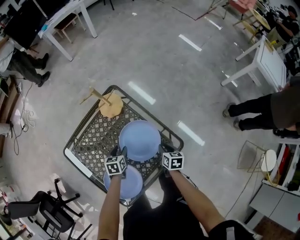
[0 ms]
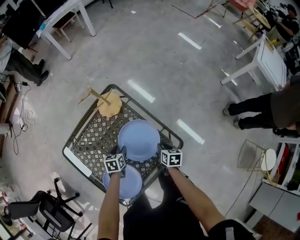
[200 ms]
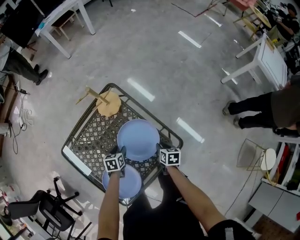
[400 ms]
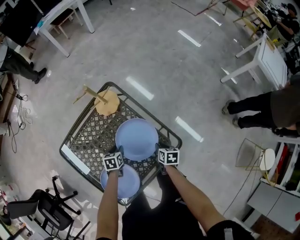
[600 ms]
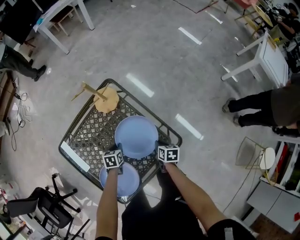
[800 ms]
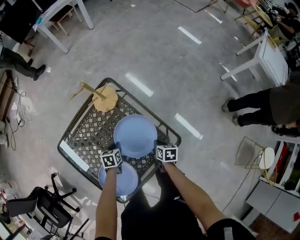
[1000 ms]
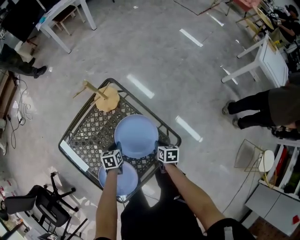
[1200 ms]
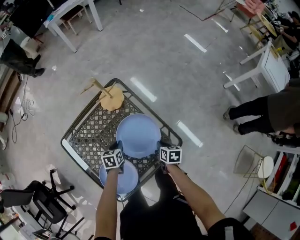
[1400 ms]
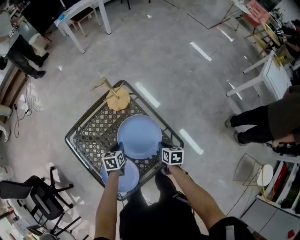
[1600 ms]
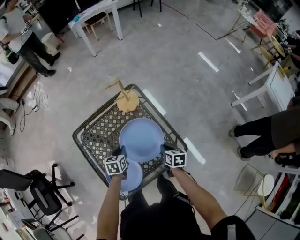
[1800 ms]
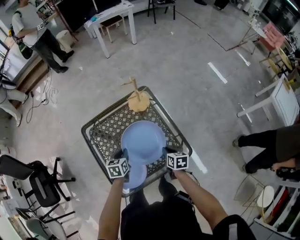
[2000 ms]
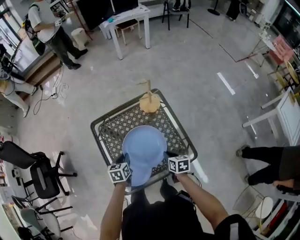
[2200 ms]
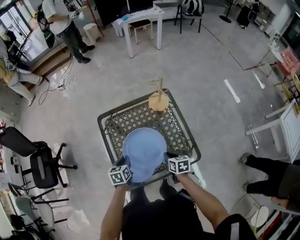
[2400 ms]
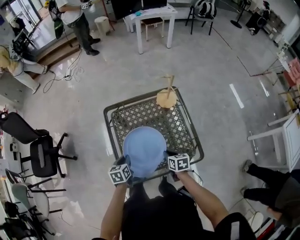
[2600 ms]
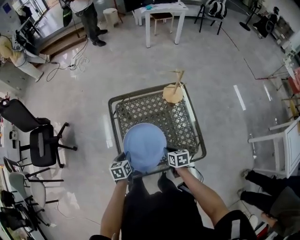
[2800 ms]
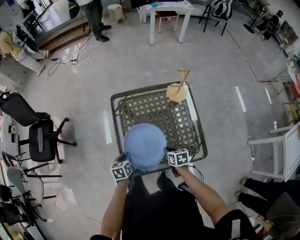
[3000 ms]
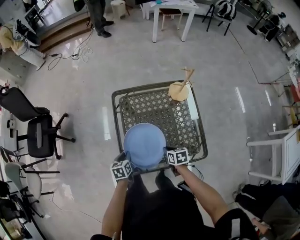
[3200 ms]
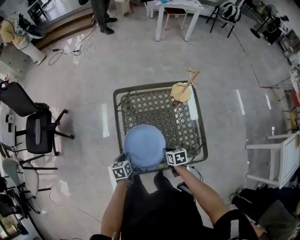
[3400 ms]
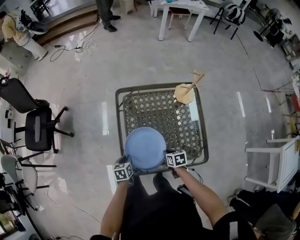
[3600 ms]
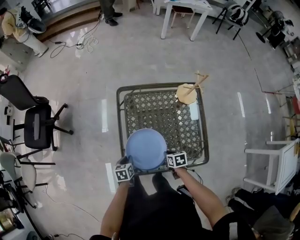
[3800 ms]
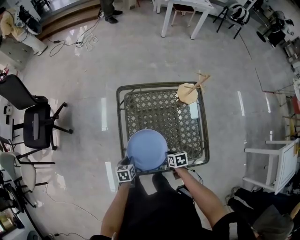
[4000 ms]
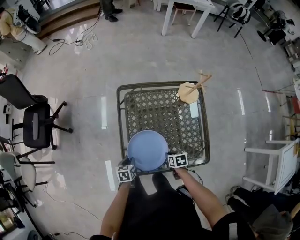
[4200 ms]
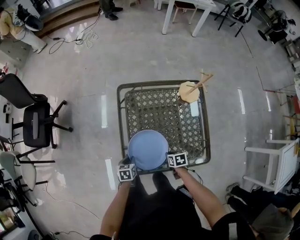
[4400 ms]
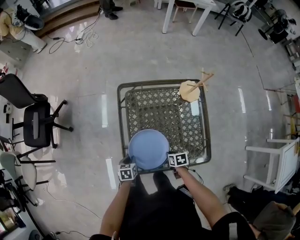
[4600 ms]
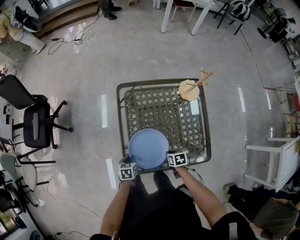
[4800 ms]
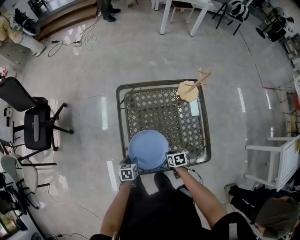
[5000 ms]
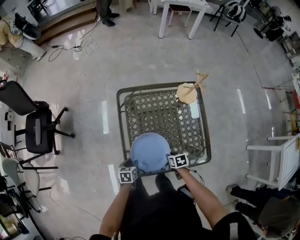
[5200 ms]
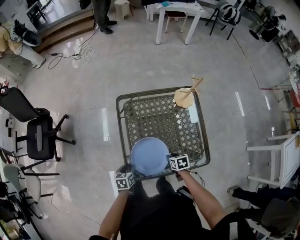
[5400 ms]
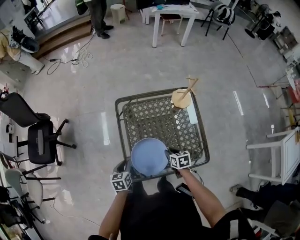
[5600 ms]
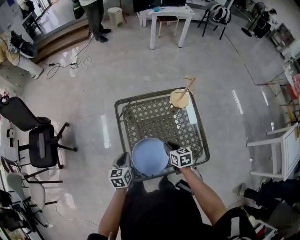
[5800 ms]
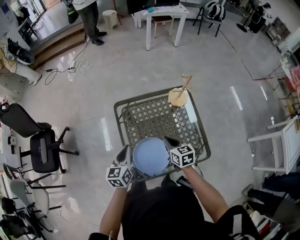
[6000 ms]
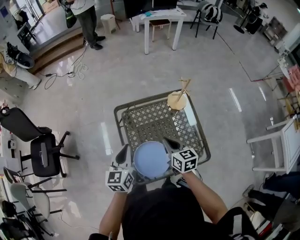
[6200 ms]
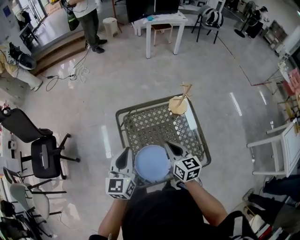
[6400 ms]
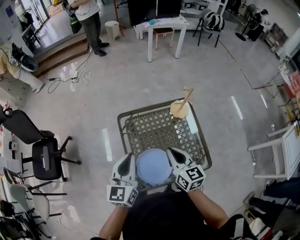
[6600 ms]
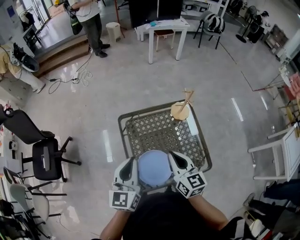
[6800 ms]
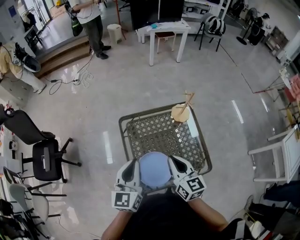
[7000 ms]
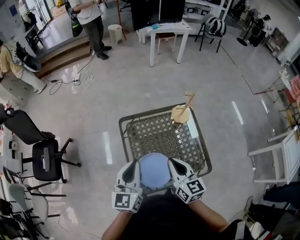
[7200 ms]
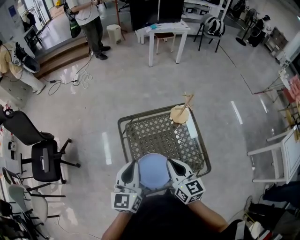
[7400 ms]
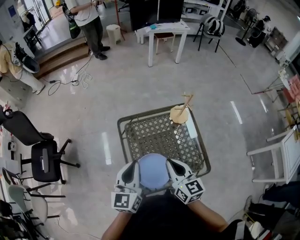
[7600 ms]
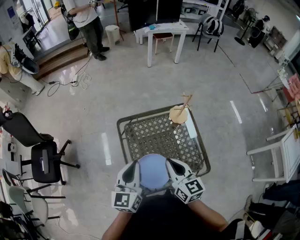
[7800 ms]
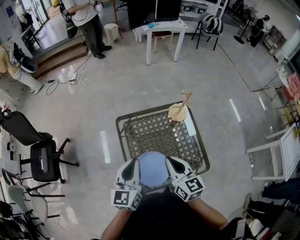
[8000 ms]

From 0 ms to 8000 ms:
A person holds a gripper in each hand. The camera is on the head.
From 0 ms to 1600 ms: The left gripper goes downward and returns, about 5 cm each way, and closes.
From 1600 ms to 3200 ms: The left gripper shifts by some 30 cm, and swivels roughly 40 degrees, while the right gripper ends up approximately 25 cm from where it was, and rotates about 40 degrees.
From 3200 ms to 4800 ms: The grippers both shift downward by approximately 10 cm.
From 4800 ms to 6400 ms: The two grippers go roughly 35 cm upward. The left gripper angles its fingers upward, by roughly 50 degrees, and opens, then closes once more; the right gripper angles its fingers upward, by roughly 50 degrees.
From 6400 ms to 8000 ms: The right gripper moves upward, approximately 5 cm.

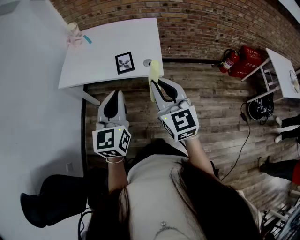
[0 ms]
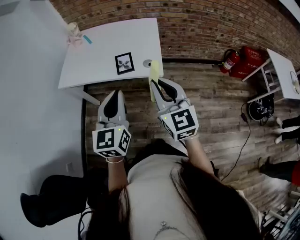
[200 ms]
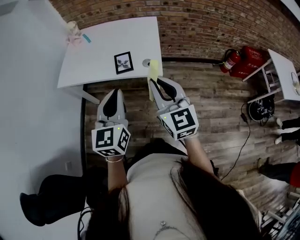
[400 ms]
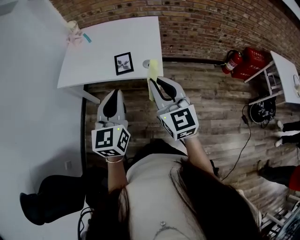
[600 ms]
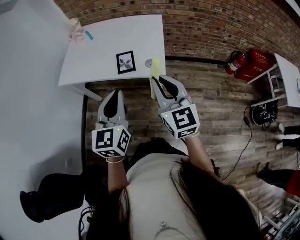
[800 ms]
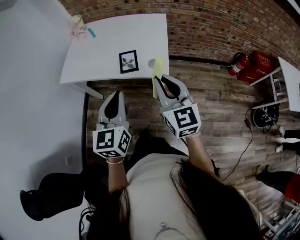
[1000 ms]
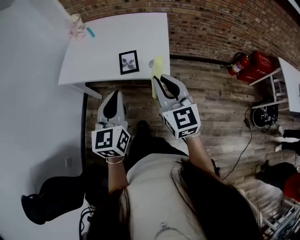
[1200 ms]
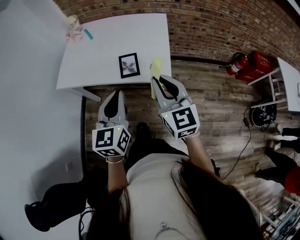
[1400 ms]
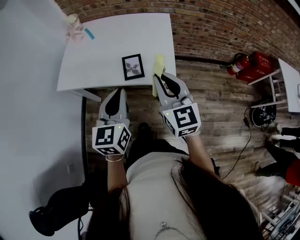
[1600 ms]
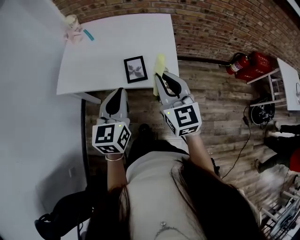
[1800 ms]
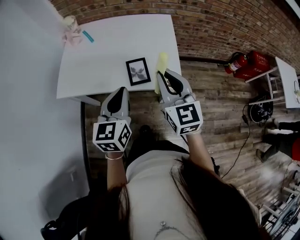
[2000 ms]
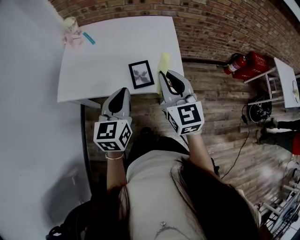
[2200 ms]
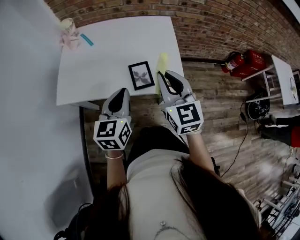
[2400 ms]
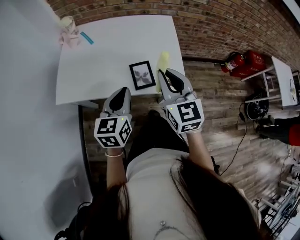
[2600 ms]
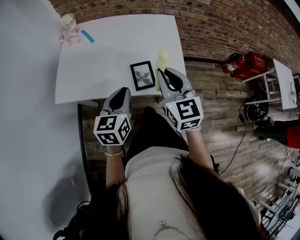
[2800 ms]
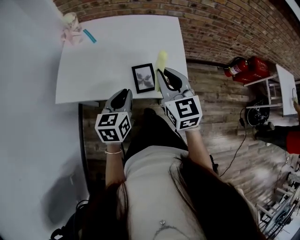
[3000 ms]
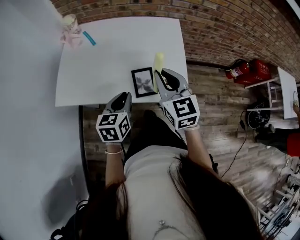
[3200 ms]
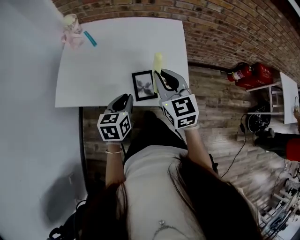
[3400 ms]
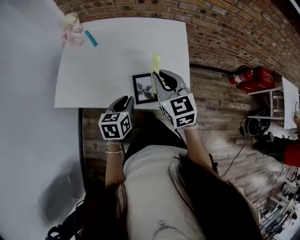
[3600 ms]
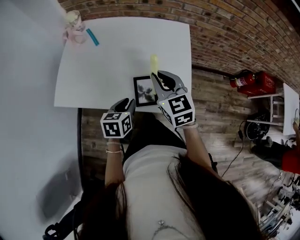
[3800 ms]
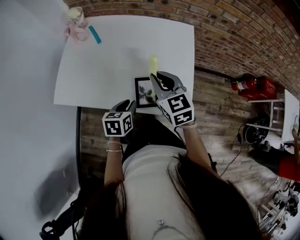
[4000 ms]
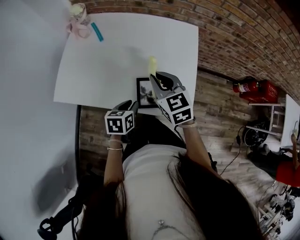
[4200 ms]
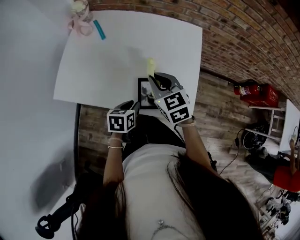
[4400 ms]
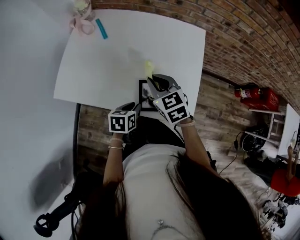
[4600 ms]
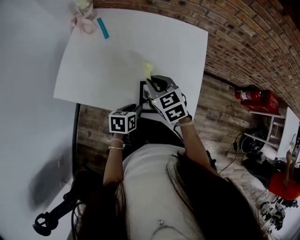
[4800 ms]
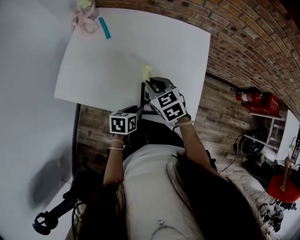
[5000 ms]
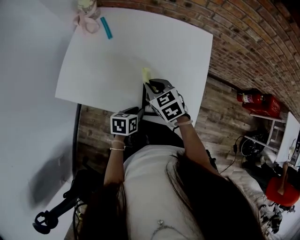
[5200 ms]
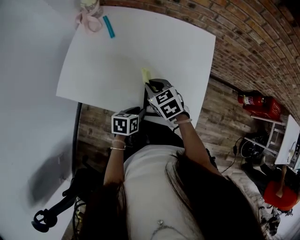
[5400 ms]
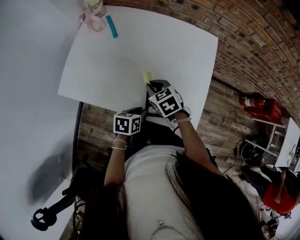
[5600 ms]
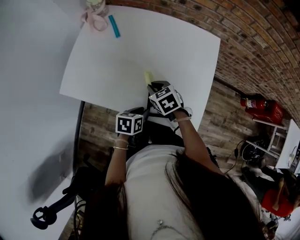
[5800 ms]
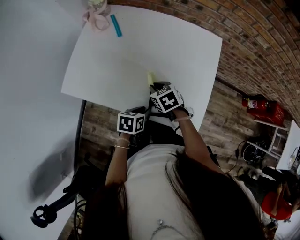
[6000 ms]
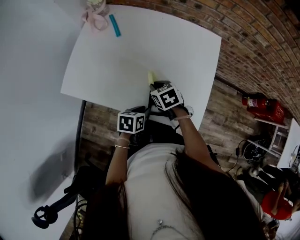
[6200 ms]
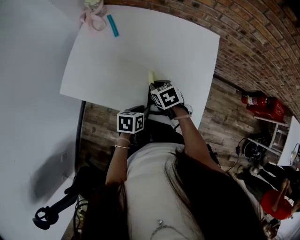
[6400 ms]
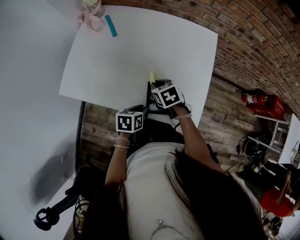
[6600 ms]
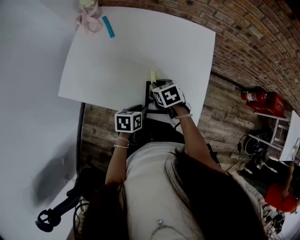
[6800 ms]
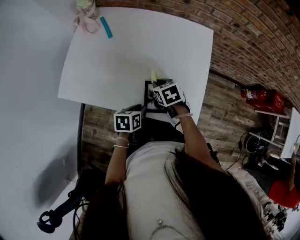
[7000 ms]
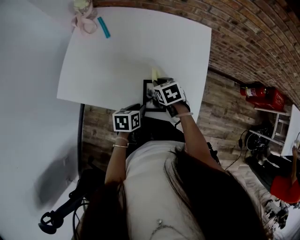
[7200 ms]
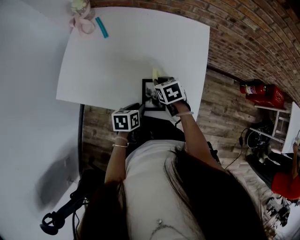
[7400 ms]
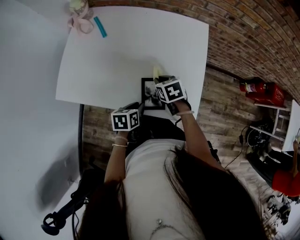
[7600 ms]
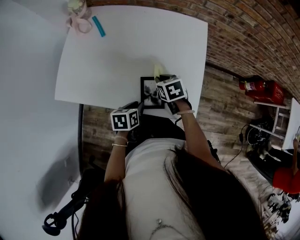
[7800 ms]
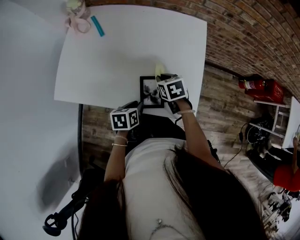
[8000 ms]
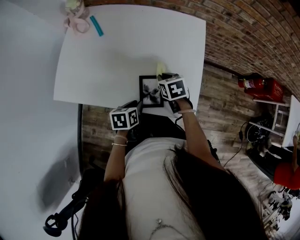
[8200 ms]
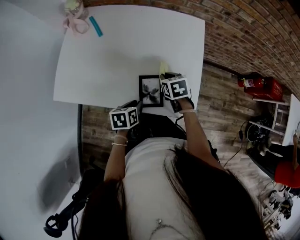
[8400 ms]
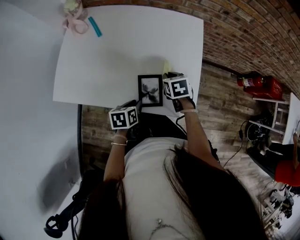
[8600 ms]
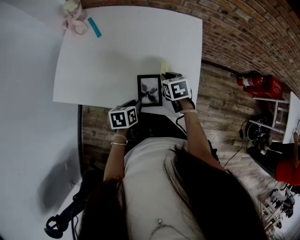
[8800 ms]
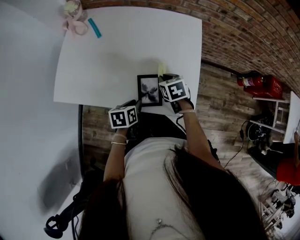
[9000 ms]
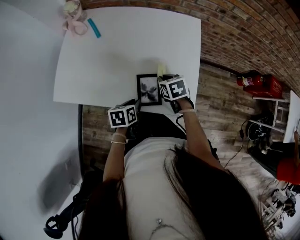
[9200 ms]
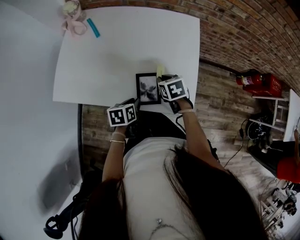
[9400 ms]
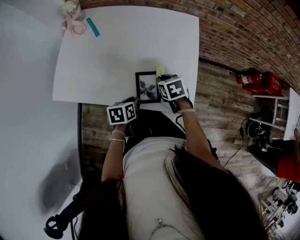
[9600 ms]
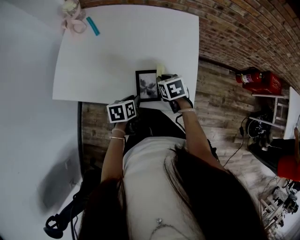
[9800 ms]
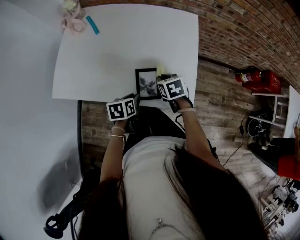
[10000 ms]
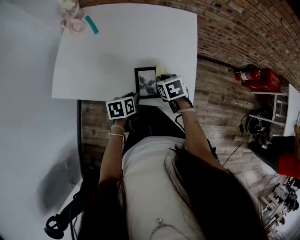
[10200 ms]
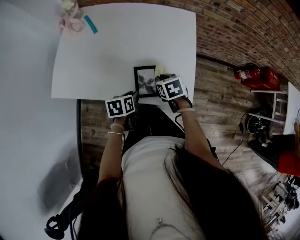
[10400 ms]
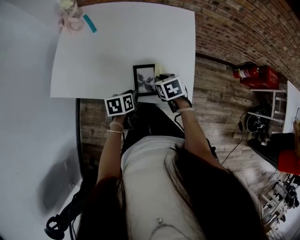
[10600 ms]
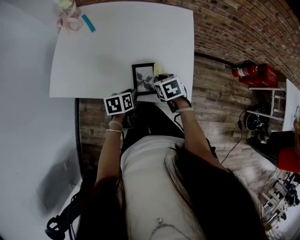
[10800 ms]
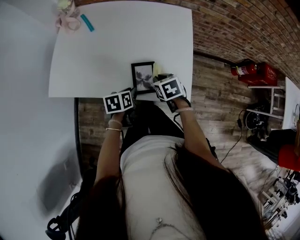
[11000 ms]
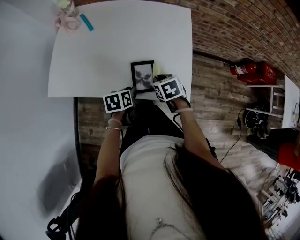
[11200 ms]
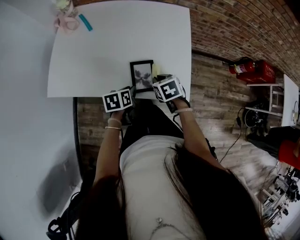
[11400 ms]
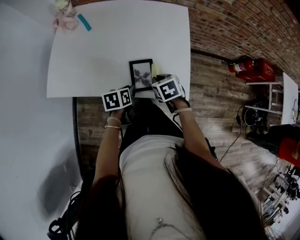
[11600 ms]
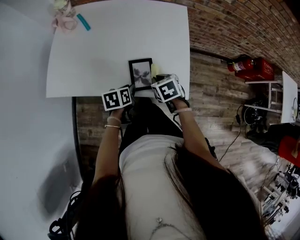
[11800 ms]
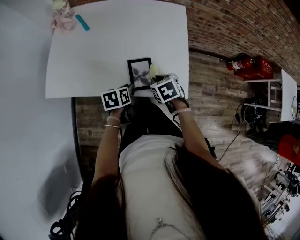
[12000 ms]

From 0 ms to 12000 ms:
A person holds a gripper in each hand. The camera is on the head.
From 0 ms to 1600 ms: The grippers both shift forward by roughly 15 cm.
From 1600 ms to 3000 ms: The left gripper goes some 15 cm forward, downward and to the left, while the right gripper is displaced forward and to the left by approximately 15 cm.
From 3000 ms to 4400 ms: The right gripper shifts some 15 cm forward and downward, and changes its angle by roughly 30 degrees. The left gripper is displaced downward by about 15 cm, and rotates approximately 30 degrees.
From 4400 ms to 6000 ms: The right gripper shifts approximately 15 cm downward, and swivels about 30 degrees.
From 6000 ms to 7600 ms: The right gripper moves to the right, about 5 cm.
From 7600 ms to 9000 ms: The grippers stay close to where they were, moving slightly.
From 9000 ms to 10400 ms: The grippers make only small movements.
From 10400 ms to 12000 ms: There are only small adjustments of the grippers.

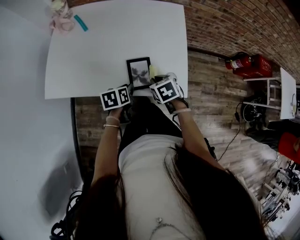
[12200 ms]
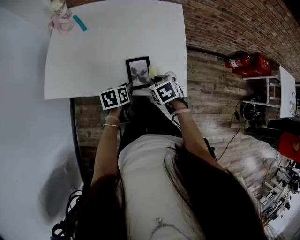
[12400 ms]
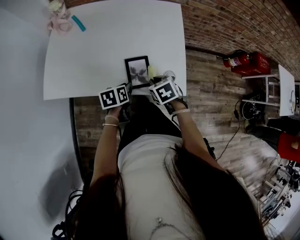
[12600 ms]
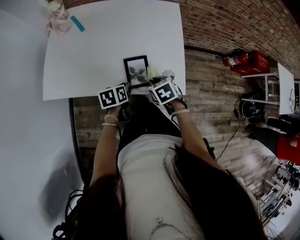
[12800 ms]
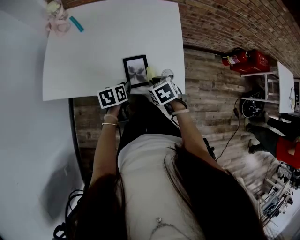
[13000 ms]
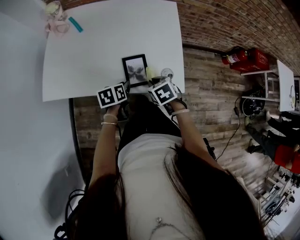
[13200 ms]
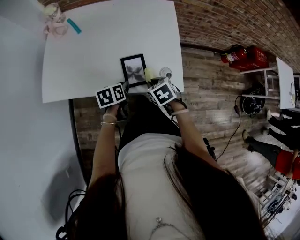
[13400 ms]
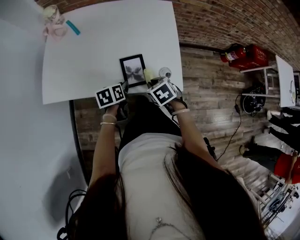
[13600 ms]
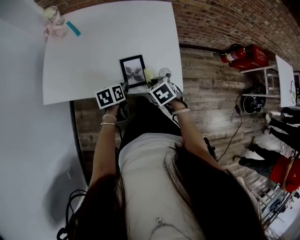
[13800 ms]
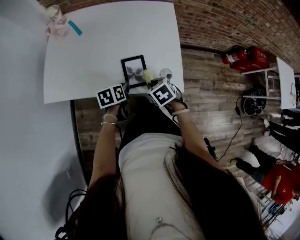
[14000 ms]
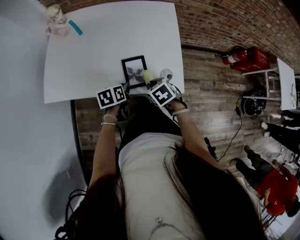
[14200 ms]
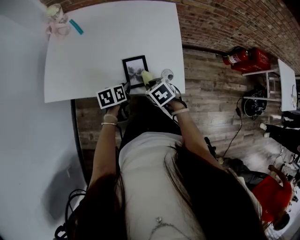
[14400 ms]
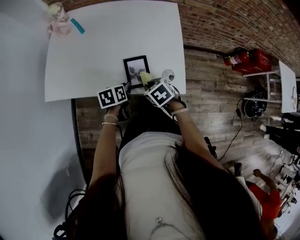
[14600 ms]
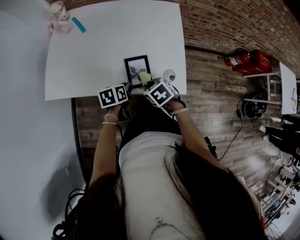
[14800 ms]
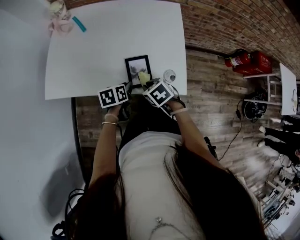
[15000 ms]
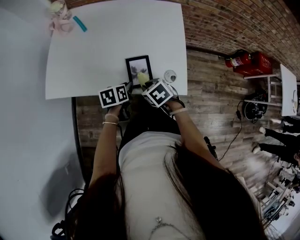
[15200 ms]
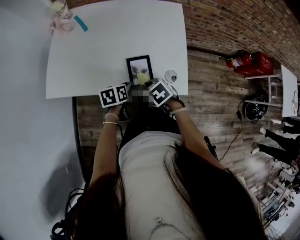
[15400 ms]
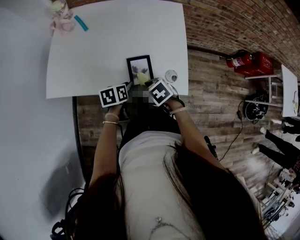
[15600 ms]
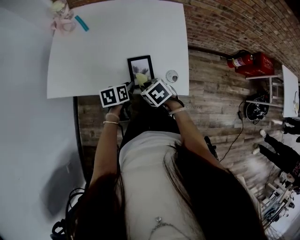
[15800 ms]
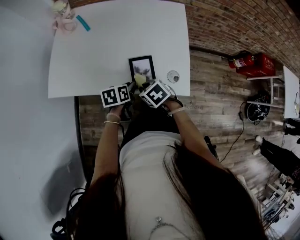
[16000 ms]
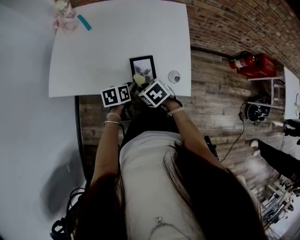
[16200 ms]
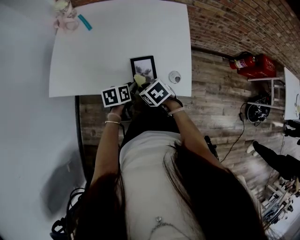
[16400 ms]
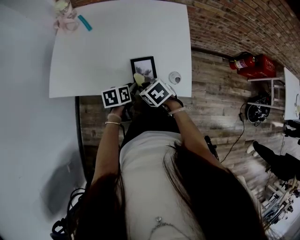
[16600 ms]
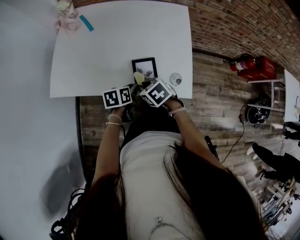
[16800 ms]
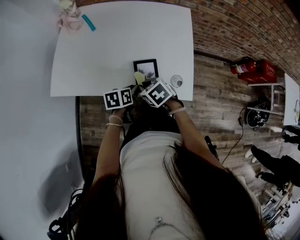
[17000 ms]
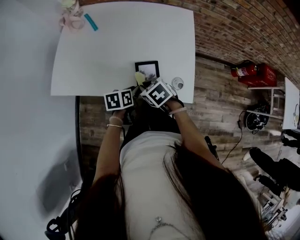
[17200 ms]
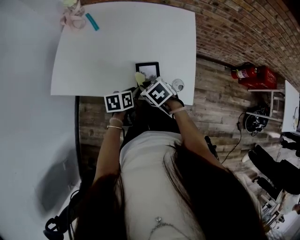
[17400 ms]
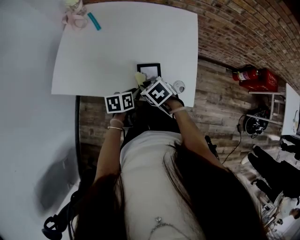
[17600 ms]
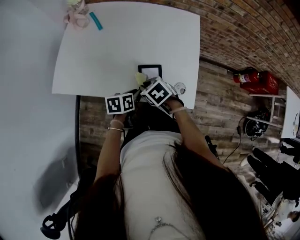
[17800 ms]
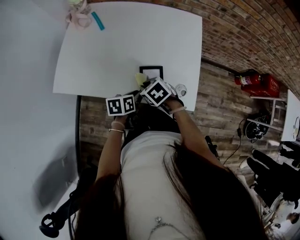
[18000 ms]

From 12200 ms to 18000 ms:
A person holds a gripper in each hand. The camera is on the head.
From 12200 ms to 15000 ms: There are only small adjustments of the grippers.
From 15000 ms to 16600 ms: The grippers move only a little.
From 16600 ms to 18000 ms: The right gripper moves about 5 cm.
